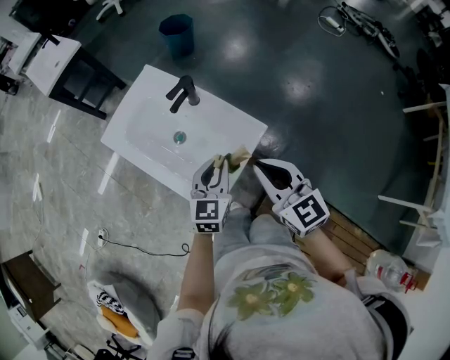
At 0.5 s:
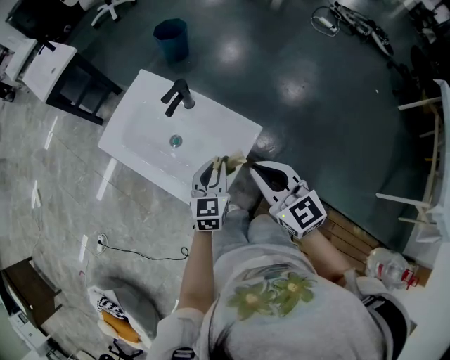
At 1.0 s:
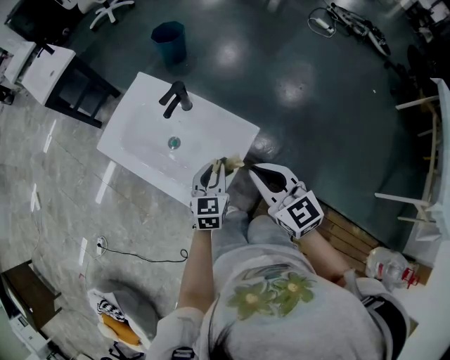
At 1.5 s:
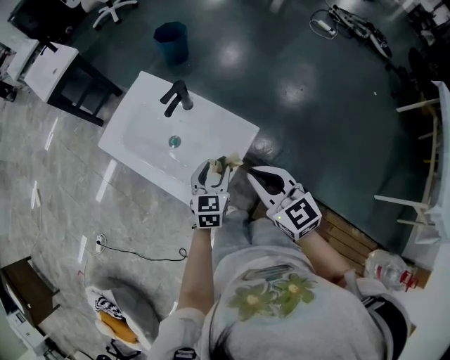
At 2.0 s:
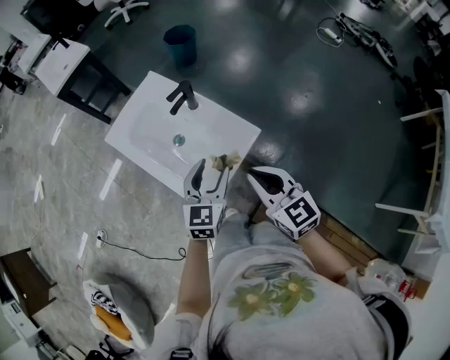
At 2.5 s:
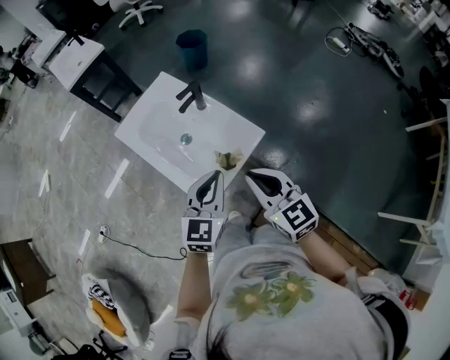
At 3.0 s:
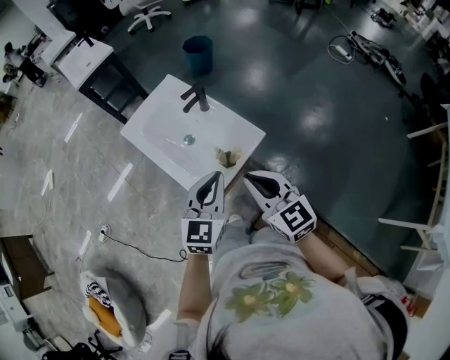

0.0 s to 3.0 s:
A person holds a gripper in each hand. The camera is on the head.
0.0 to 1.5 s: The left gripper opens its fingers.
1.5 to 3.0 s: The right gripper shifts roughly 10 cm backward and upward, while the left gripper travels upward and backward by some 20 cm, and closes up.

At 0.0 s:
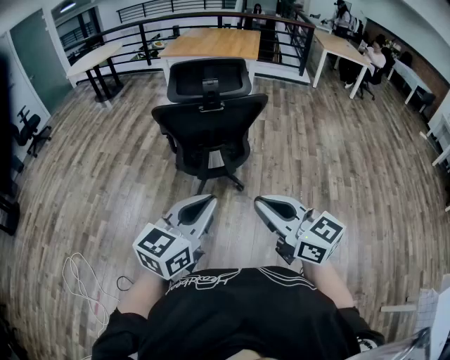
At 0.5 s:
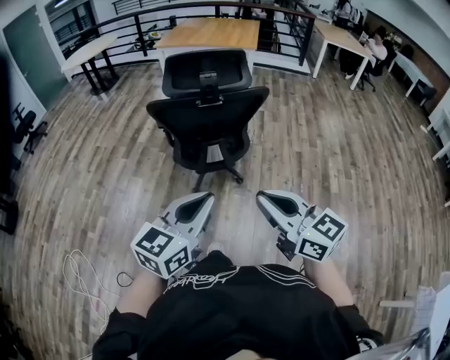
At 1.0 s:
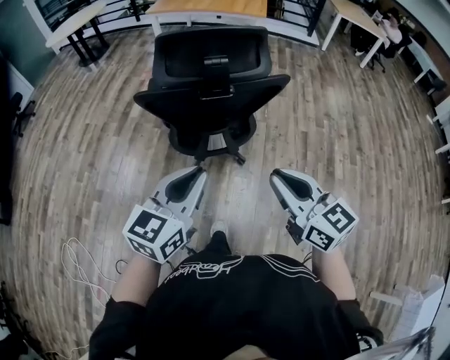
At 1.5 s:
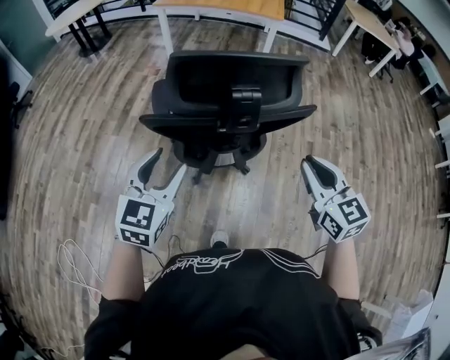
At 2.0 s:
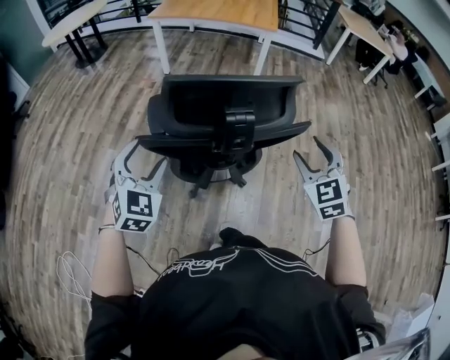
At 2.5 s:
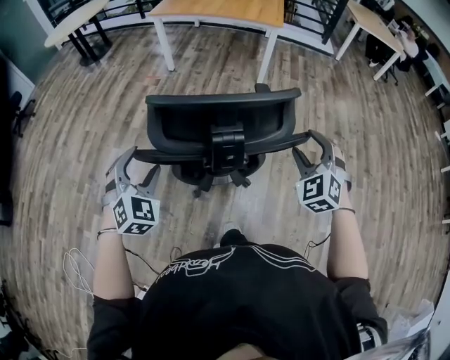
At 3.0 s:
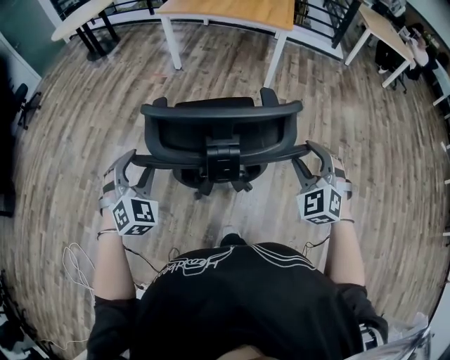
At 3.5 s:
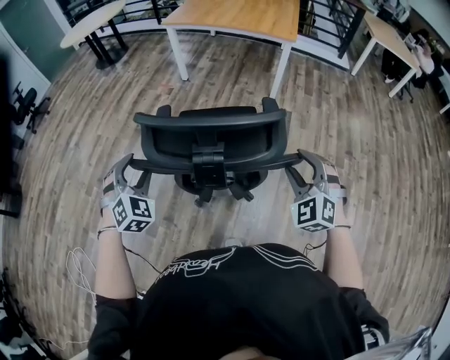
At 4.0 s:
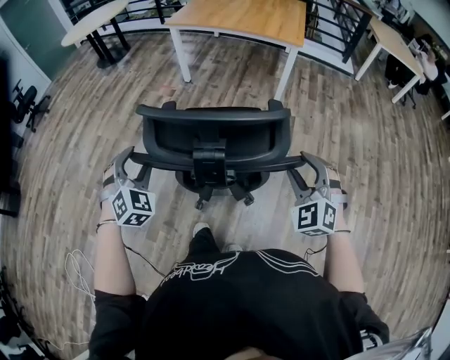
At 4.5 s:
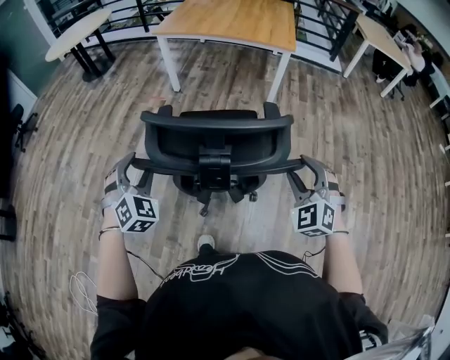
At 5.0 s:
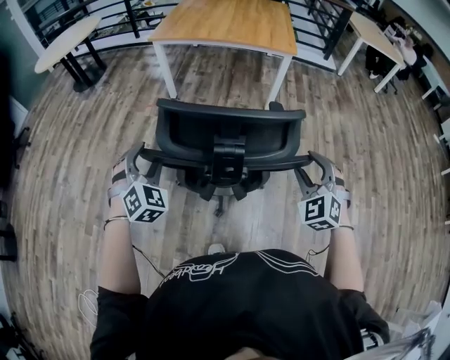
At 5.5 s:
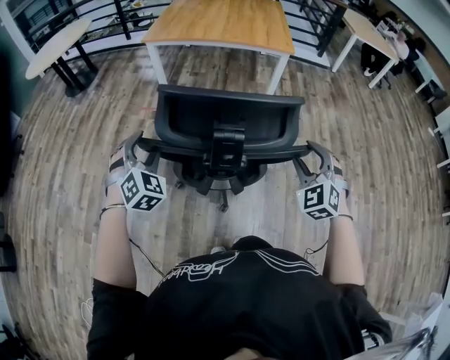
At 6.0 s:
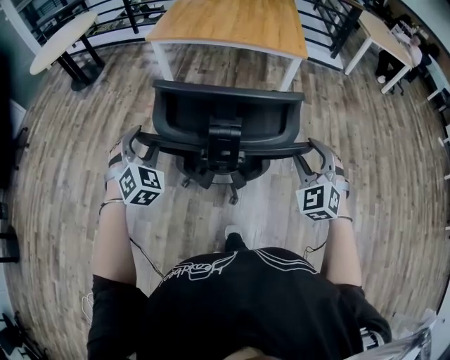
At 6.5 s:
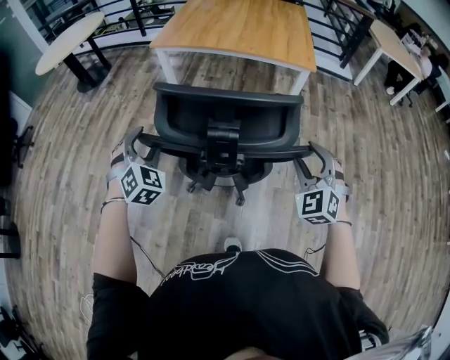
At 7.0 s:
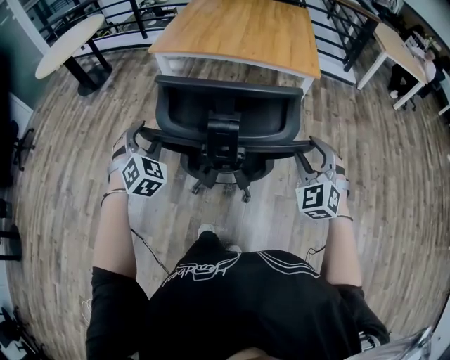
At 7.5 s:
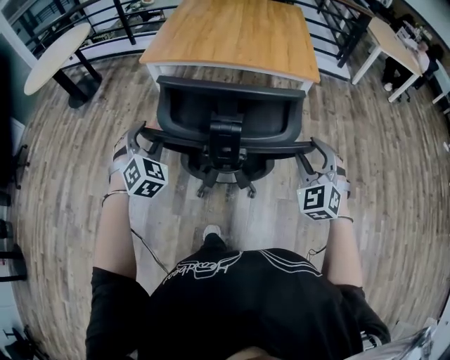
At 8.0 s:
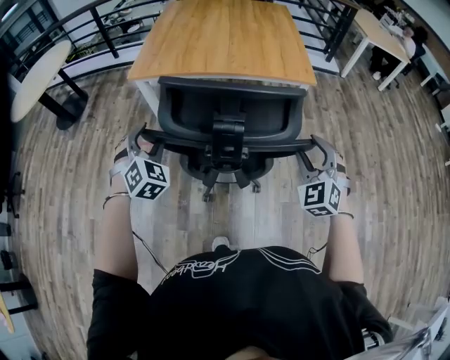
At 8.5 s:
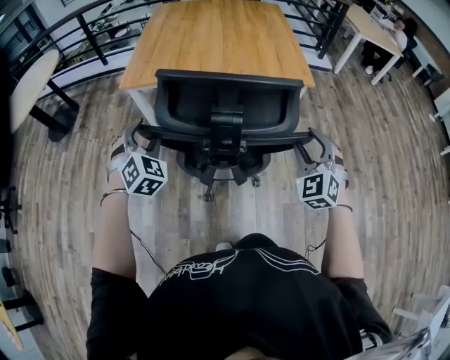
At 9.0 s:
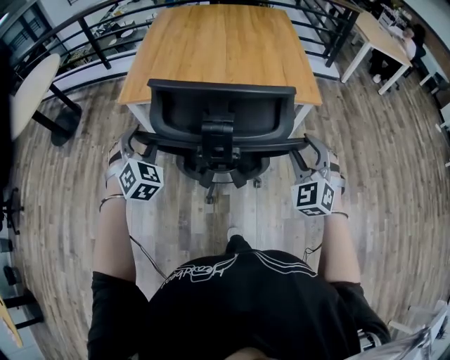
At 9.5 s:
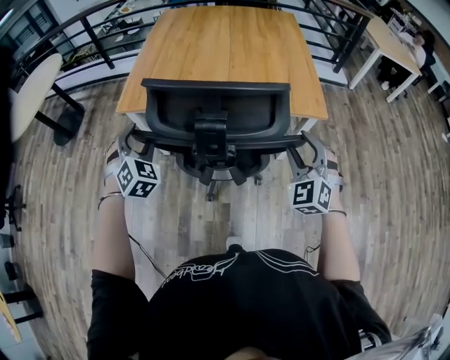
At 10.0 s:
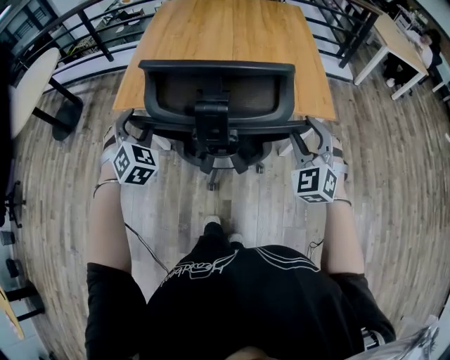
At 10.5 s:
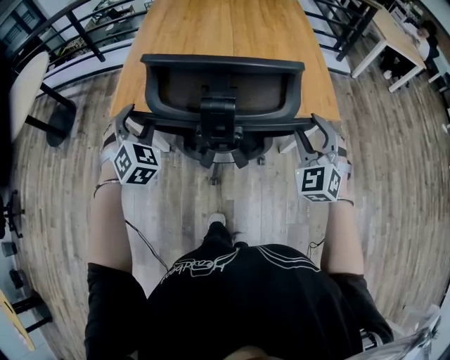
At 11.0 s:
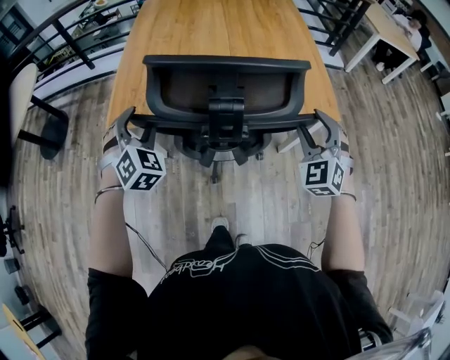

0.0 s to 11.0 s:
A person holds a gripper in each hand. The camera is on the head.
0.0 to 2.0 s: Both grippers are carried forward, roughly 40 cm. The right gripper rotates roughly 60 degrees, and opens. Meanwhile the left gripper changes its angle by roughly 50 degrees, and opens its fingers.
2.0 to 3.5 s: Both grippers travel together forward, some 10 cm. The left gripper swivels some 20 degrees. Meanwhile the right gripper turns by approximately 20 degrees.
3.5 to 5.5 s: The left gripper heads forward, covering about 25 cm. Meanwhile the right gripper shifts some 20 cm forward and to the left.
5.5 to 7.5 s: Both grippers move forward, some 30 cm.
7.5 to 9.0 s: The grippers both shift forward by some 20 cm.
9.0 to 11.0 s: The two grippers go approximately 20 cm forward.

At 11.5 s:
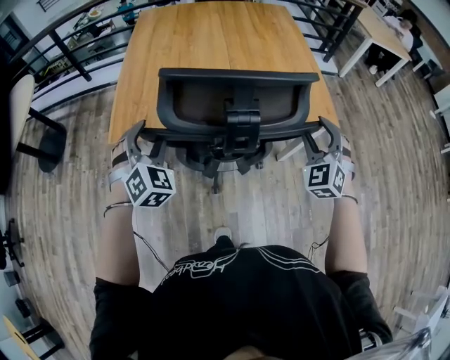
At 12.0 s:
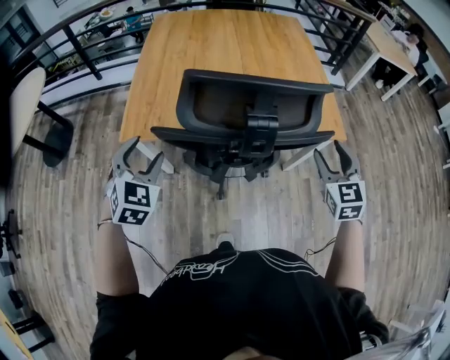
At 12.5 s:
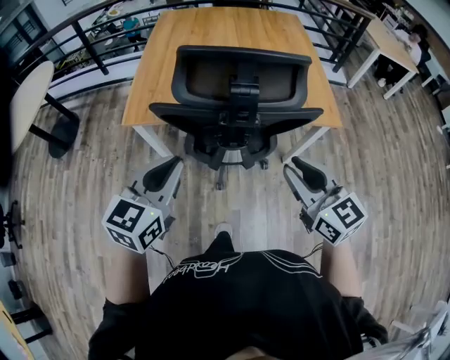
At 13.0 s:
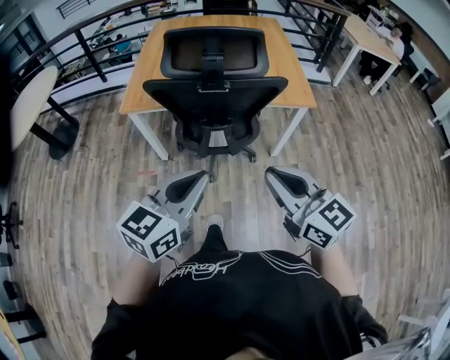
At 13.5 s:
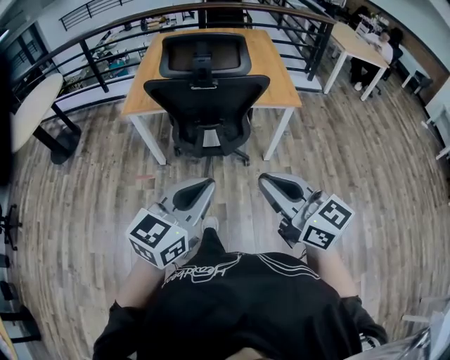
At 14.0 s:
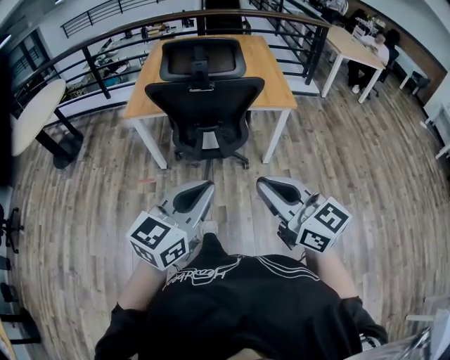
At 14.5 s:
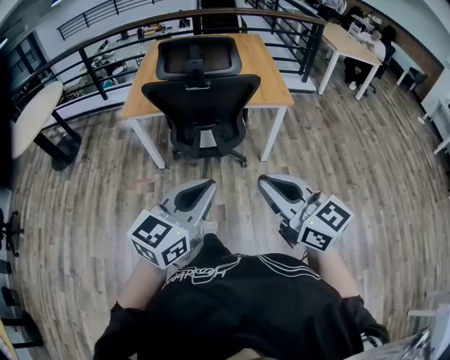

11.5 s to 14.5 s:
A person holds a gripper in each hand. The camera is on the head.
11.5 to 13.0 s: The right gripper shifts roughly 35 cm backward, rotates some 70 degrees, and closes, while the left gripper goes approximately 40 cm backward and to the right, changes its angle by roughly 70 degrees, and closes.
13.0 to 14.5 s: The grippers both shift backward by approximately 15 cm.

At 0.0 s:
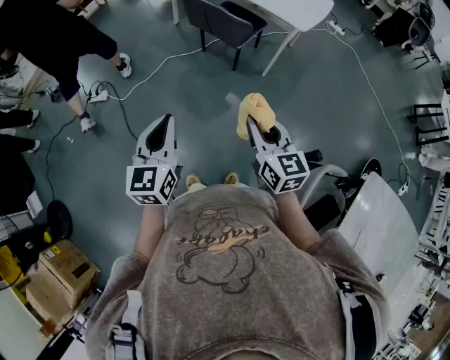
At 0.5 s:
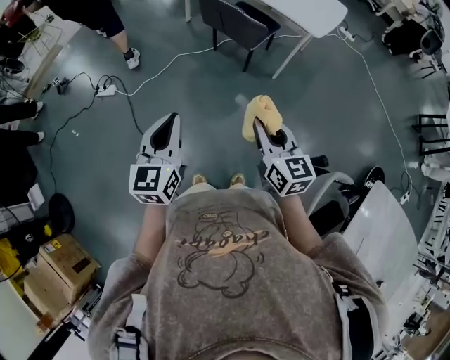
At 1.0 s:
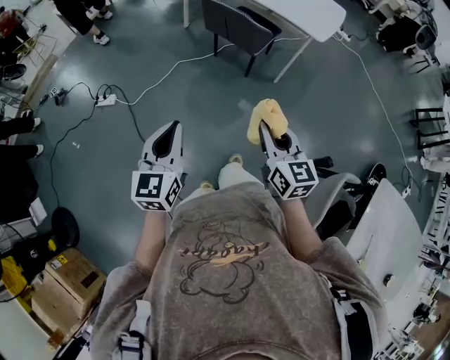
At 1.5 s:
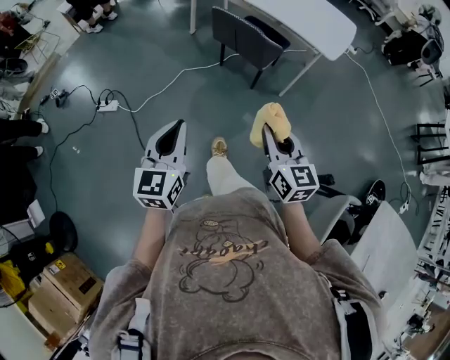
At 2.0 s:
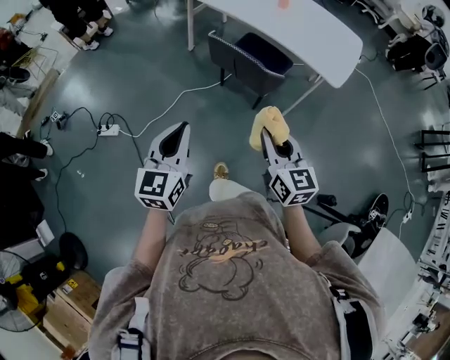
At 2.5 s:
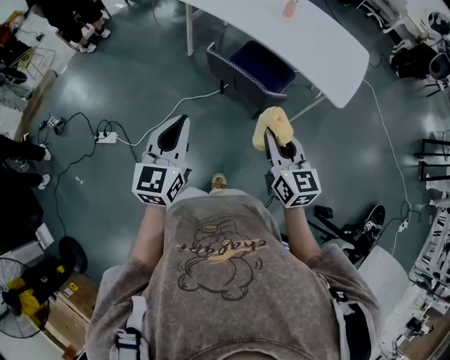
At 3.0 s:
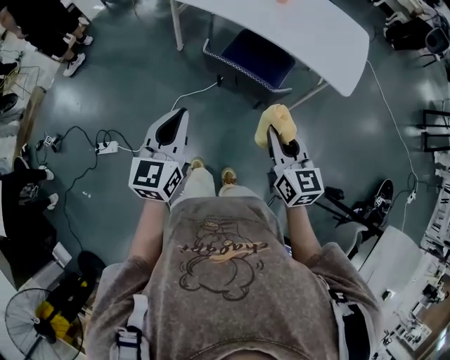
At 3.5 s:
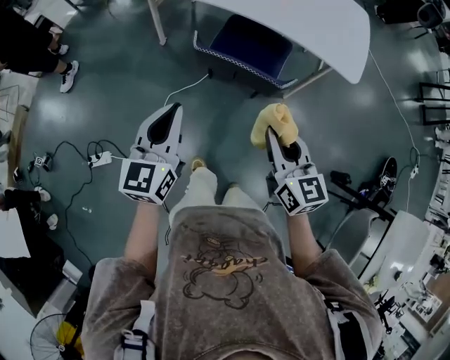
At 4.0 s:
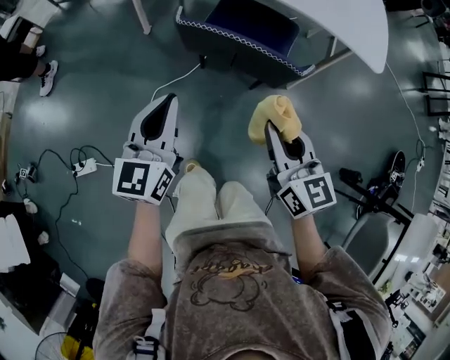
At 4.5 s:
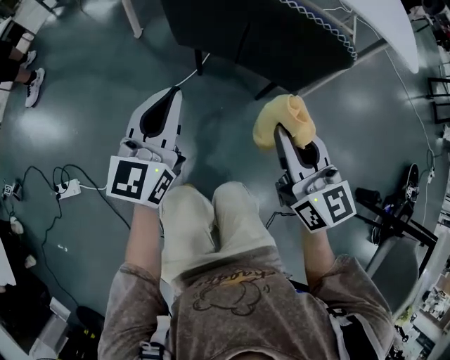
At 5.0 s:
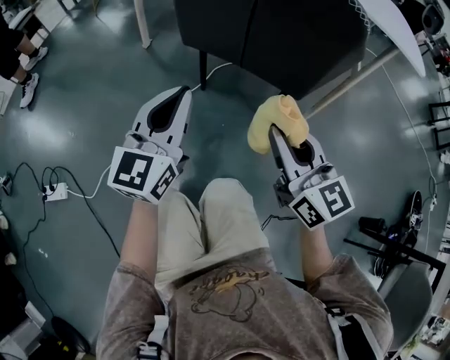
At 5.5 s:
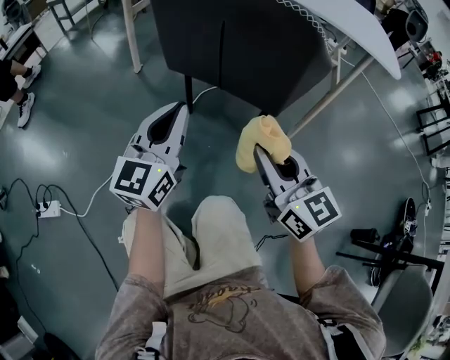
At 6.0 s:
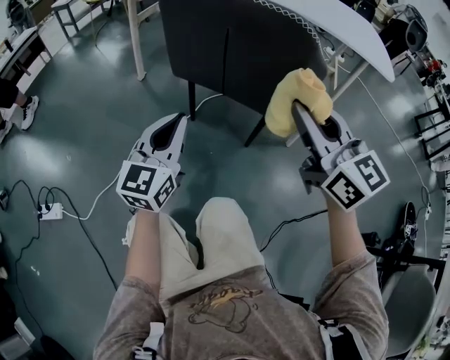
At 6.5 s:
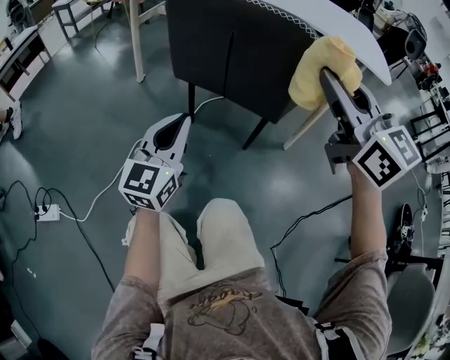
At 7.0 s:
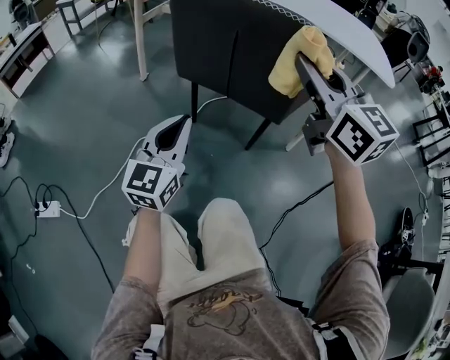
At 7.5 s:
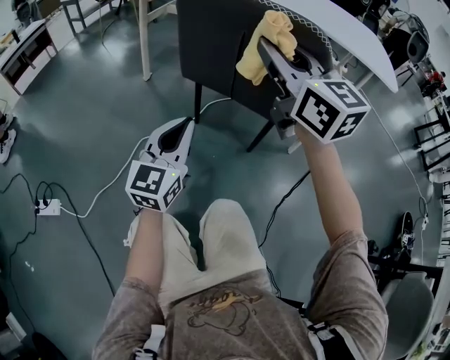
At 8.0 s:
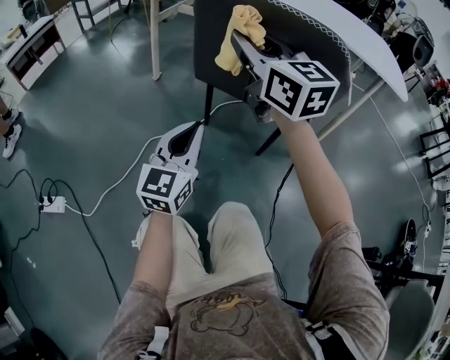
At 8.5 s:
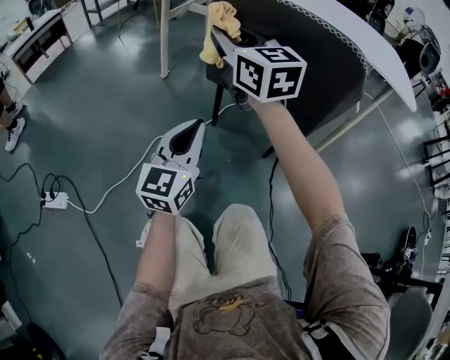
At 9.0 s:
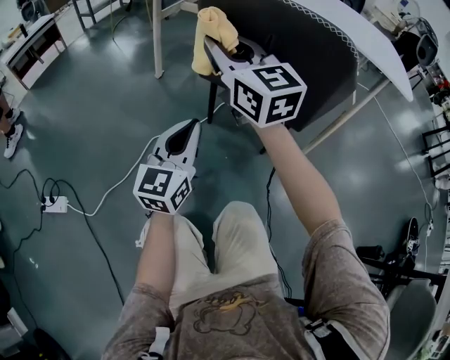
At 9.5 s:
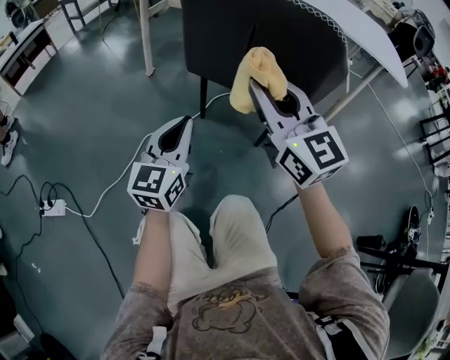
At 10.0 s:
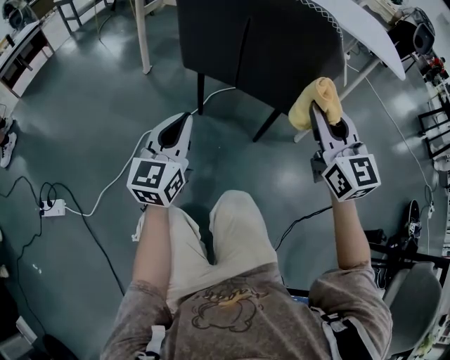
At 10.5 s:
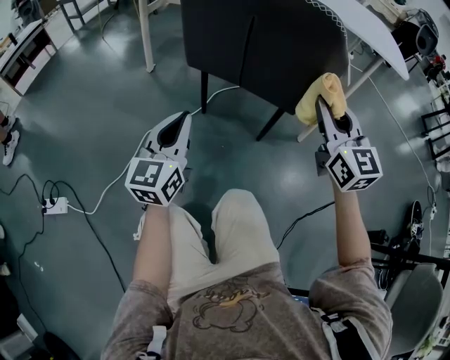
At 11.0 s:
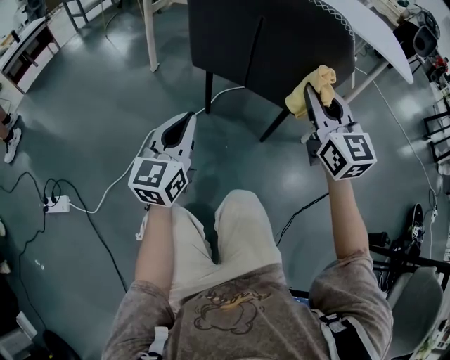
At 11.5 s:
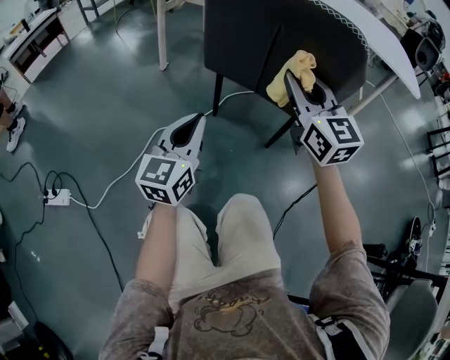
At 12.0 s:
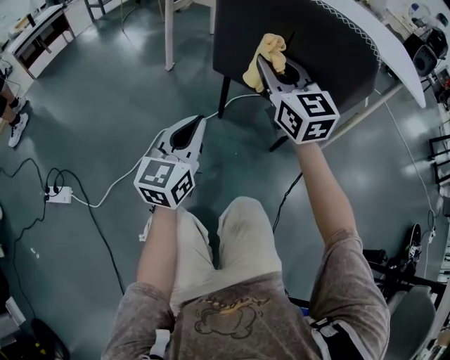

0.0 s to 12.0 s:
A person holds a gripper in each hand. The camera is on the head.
0.0 to 2.0 s: The grippers both shift forward by roughly 30 cm.
2.0 to 4.0 s: Both grippers travel together forward and downward, about 30 cm.
4.0 to 6.0 s: The right gripper heads downward and to the right, covering roughly 10 cm, and swivels some 20 degrees, while the left gripper is displaced downward by about 20 cm.
6.0 to 8.0 s: The right gripper shifts some 20 cm to the left and forward.
8.0 to 10.0 s: The right gripper is displaced to the right, backward and downward by some 25 cm.
10.0 to 12.0 s: The right gripper travels to the left and forward by some 20 cm.
